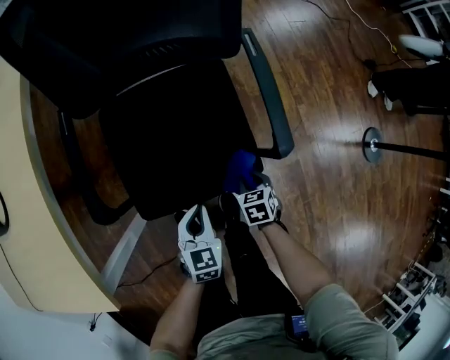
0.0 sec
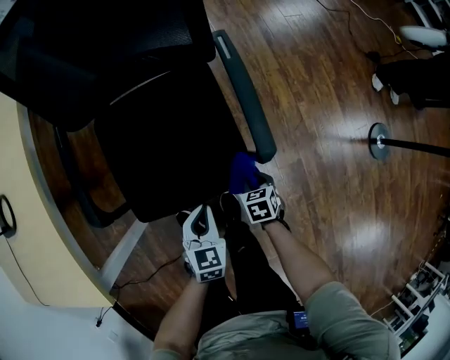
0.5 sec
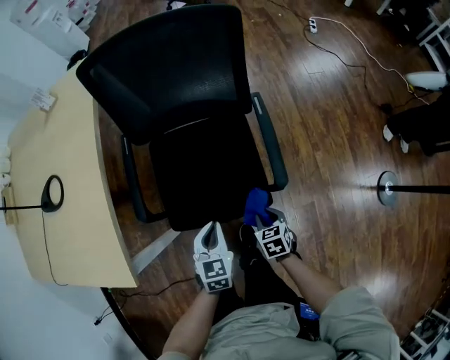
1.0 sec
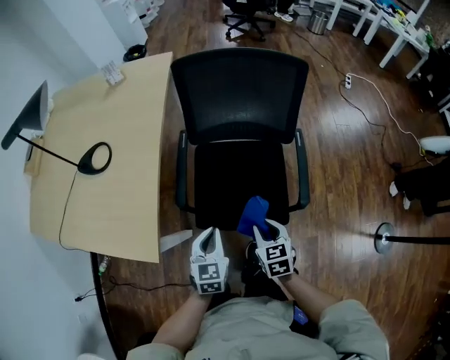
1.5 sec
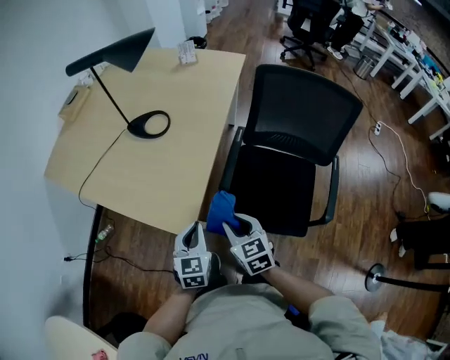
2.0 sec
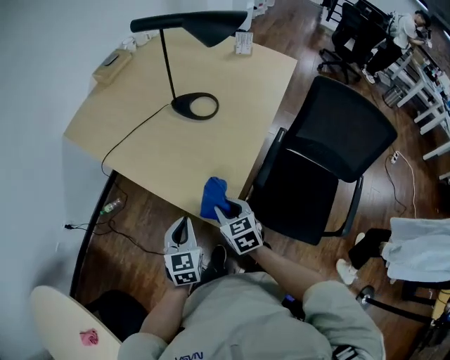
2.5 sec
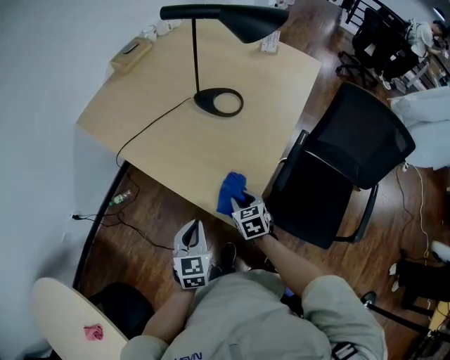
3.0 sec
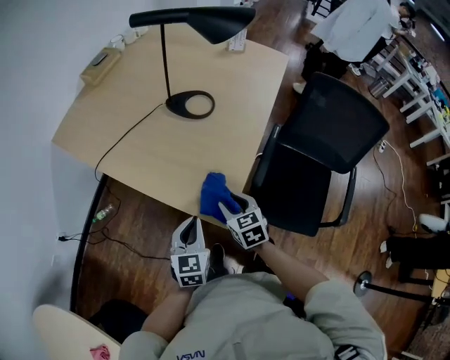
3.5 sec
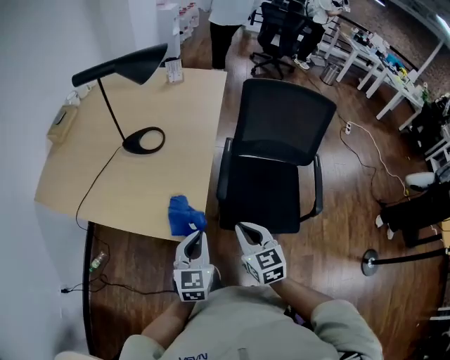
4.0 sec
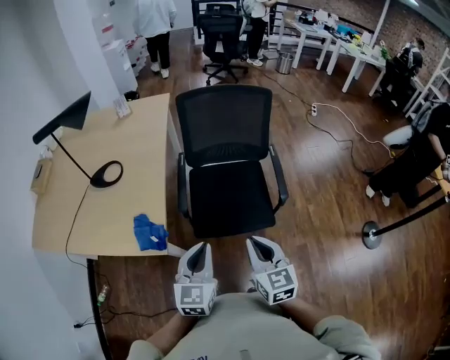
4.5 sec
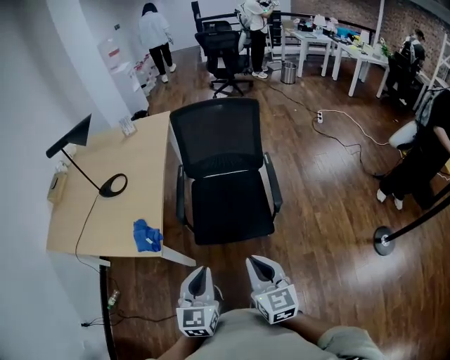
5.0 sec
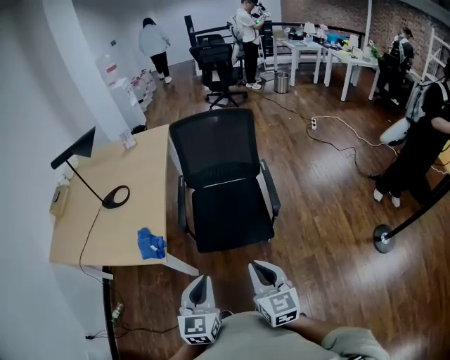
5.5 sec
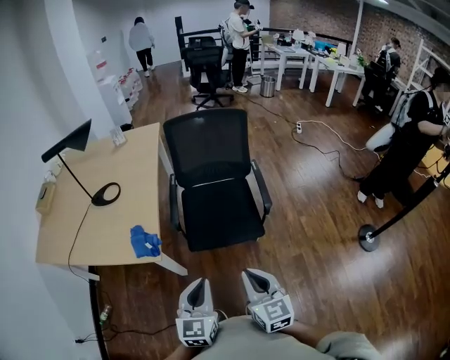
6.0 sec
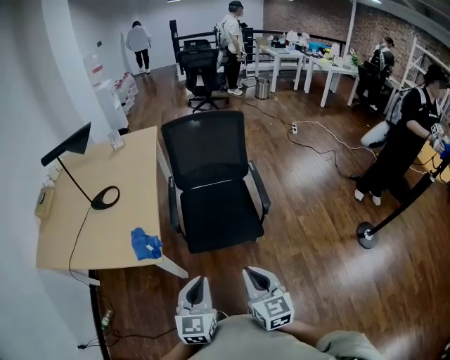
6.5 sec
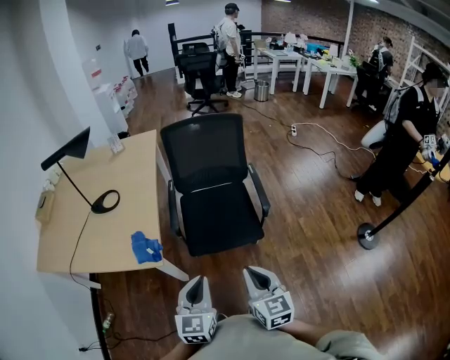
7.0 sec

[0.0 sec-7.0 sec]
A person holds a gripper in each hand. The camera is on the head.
0.0 sec to 2.0 sec: The left gripper changes place by approximately 40 cm, and changes its angle by some 40 degrees. Meanwhile the right gripper moves upward, about 40 cm, and tips its fingers upward by approximately 30 degrees.
2.0 sec to 3.5 sec: The right gripper goes about 20 cm to the left and forward, while the left gripper goes some 15 cm to the left.
3.5 sec to 5.0 sec: The pair of grippers is taken some 40 cm. The right gripper swivels roughly 50 degrees, and closes up; the left gripper swivels roughly 30 degrees.
5.0 sec to 7.0 sec: The right gripper goes approximately 5 cm backward. Meanwhile the left gripper travels to the left by some 5 cm.

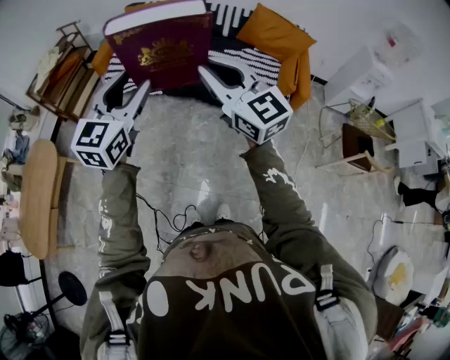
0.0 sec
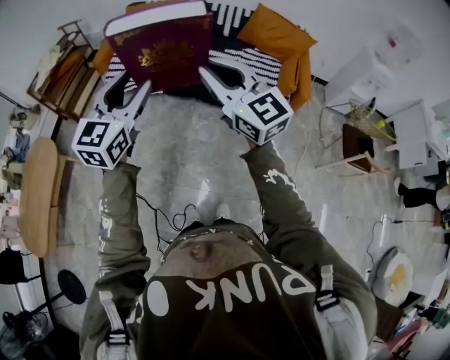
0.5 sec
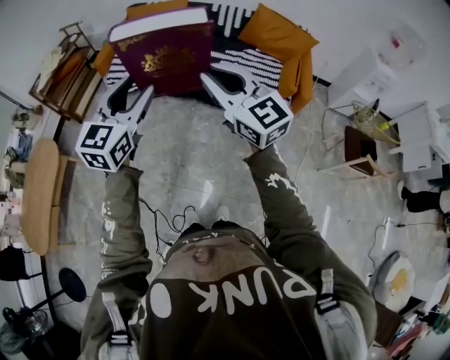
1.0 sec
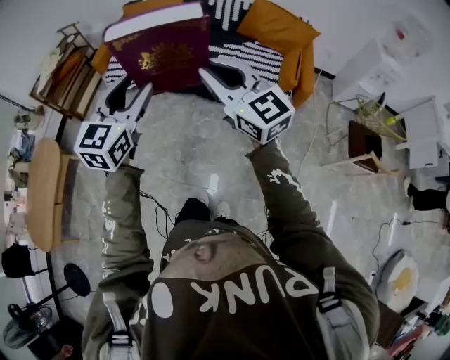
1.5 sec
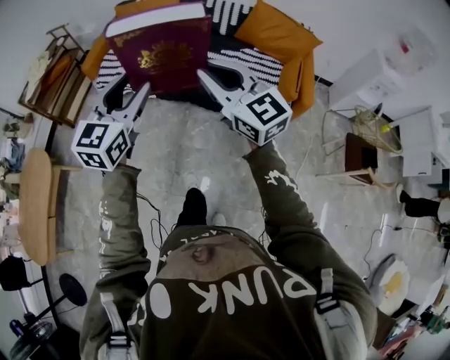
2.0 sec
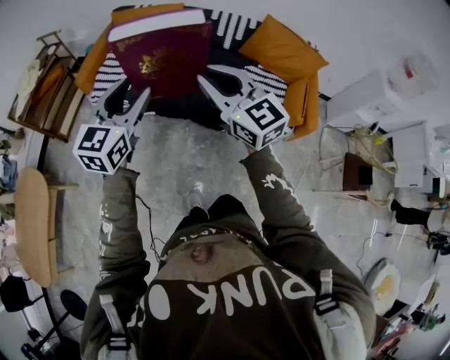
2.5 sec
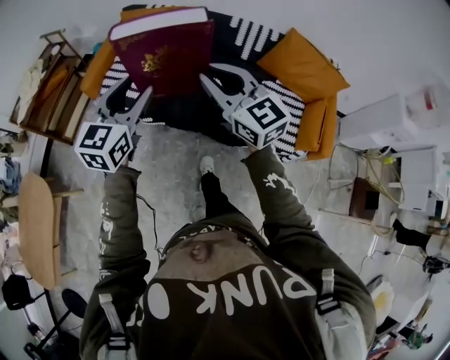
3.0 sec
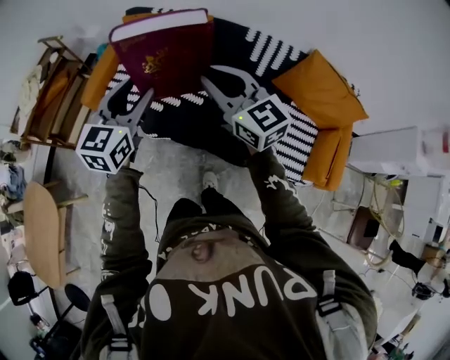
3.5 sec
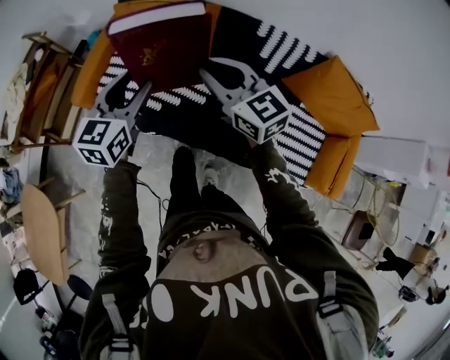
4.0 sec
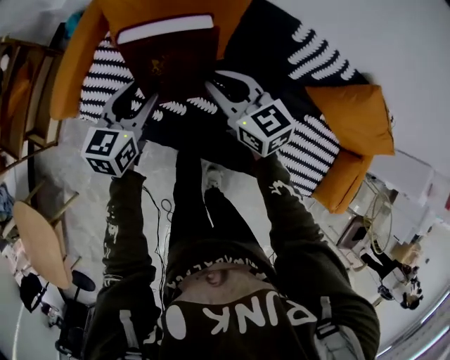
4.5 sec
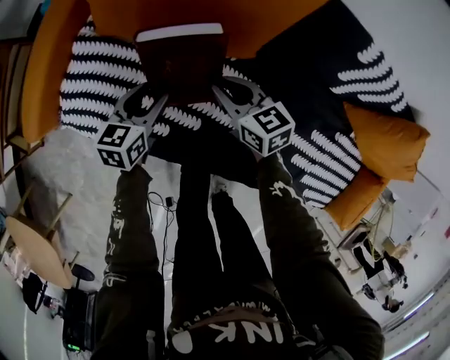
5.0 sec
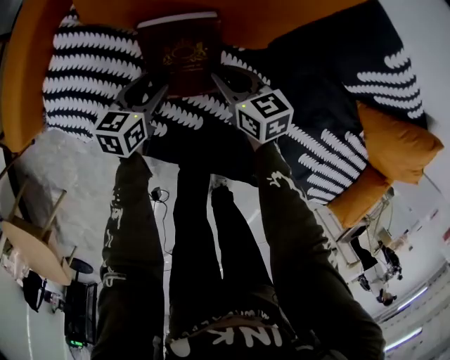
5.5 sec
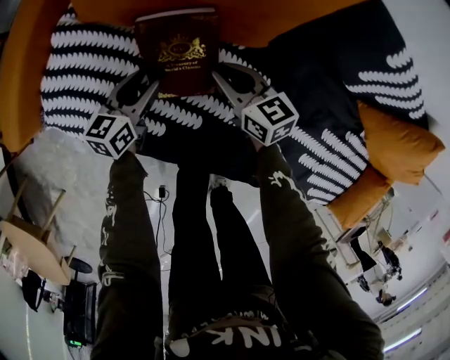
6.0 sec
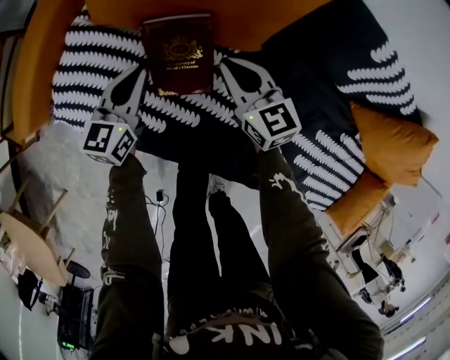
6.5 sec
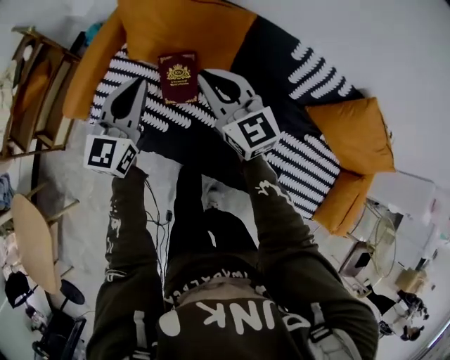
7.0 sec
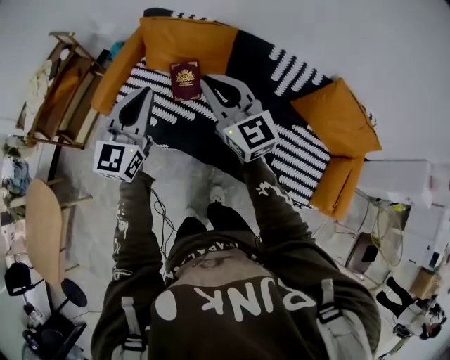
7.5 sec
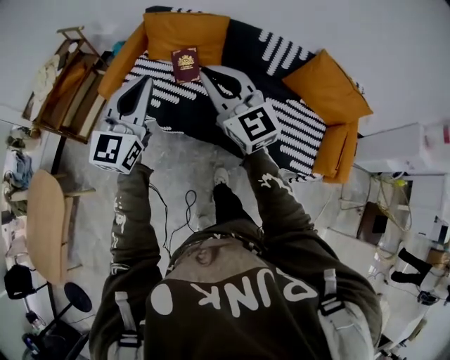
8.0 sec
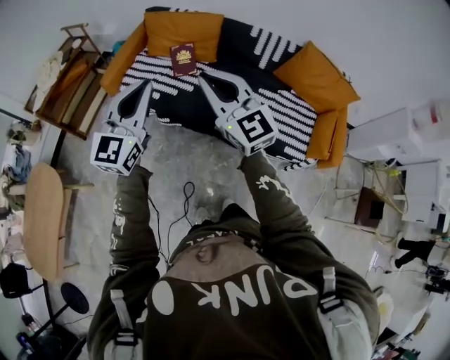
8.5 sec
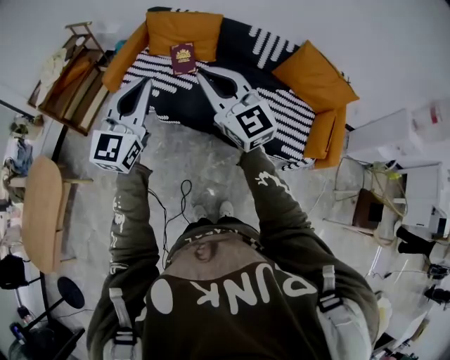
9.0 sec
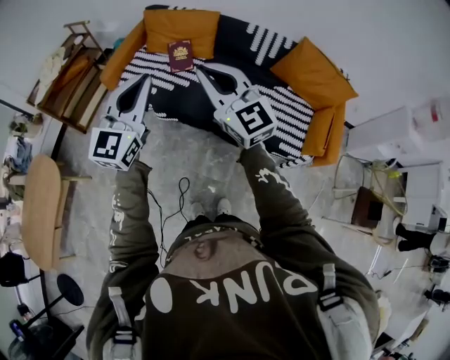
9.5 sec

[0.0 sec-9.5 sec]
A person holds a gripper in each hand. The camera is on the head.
0.0 sec to 2.0 sec: The two grippers go some 15 cm forward and to the right.
2.0 sec to 4.0 sec: Both grippers are carried forward, roughly 60 cm.
4.0 sec to 5.5 sec: Both grippers travel together downward, roughly 60 cm. The left gripper rotates about 40 degrees. Meanwhile the right gripper swivels roughly 40 degrees.
5.5 sec to 7.5 sec: The two grippers go about 70 cm upward and backward. The right gripper angles its fingers upward, by about 40 degrees. Meanwhile the left gripper tips its fingers upward by some 40 degrees, and closes.
7.5 sec to 9.5 sec: The two grippers go approximately 35 cm backward.

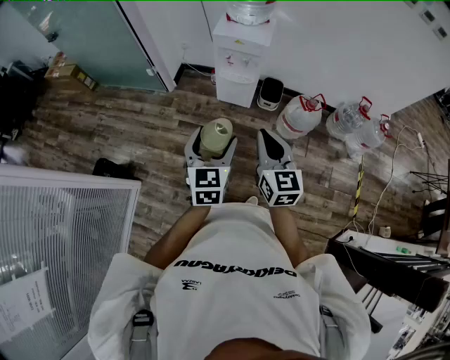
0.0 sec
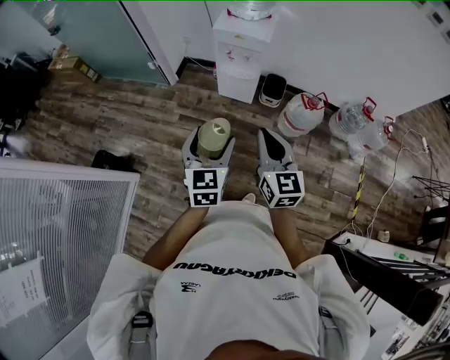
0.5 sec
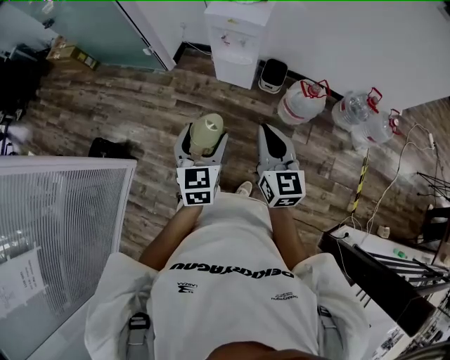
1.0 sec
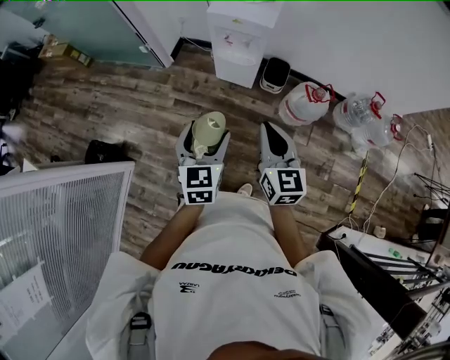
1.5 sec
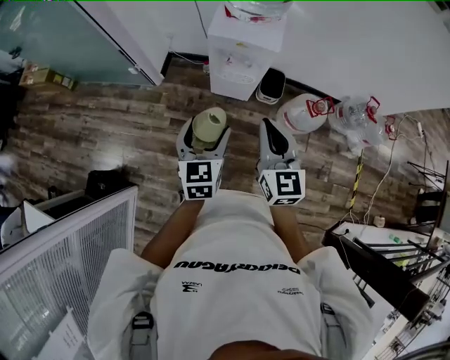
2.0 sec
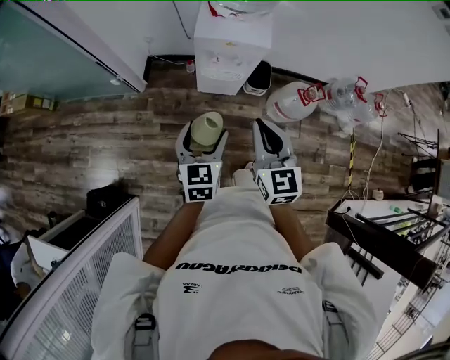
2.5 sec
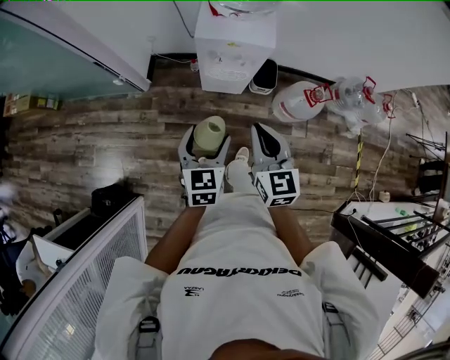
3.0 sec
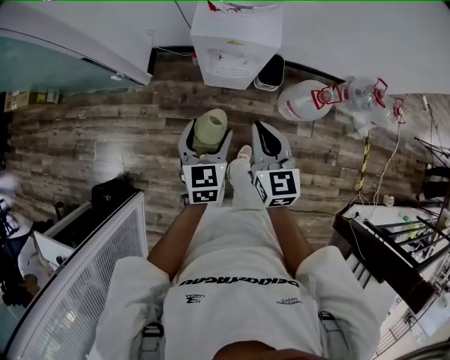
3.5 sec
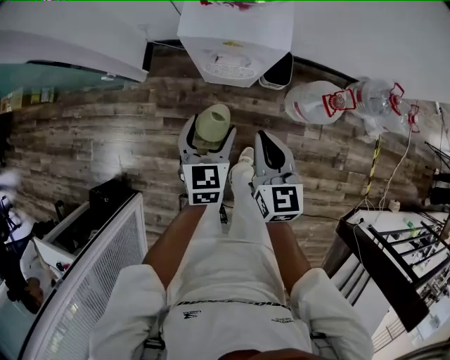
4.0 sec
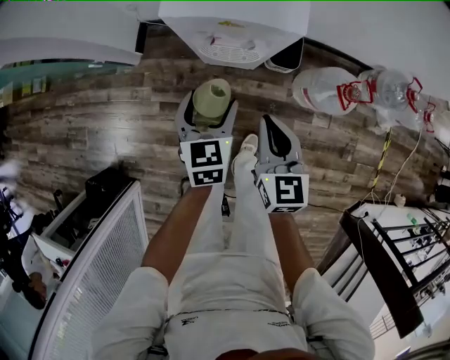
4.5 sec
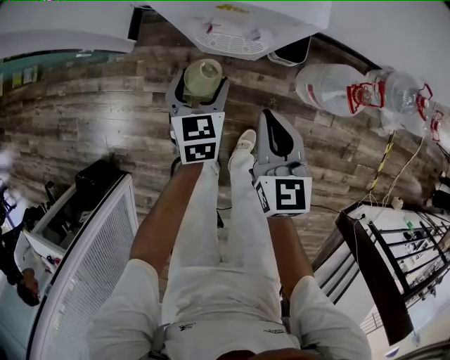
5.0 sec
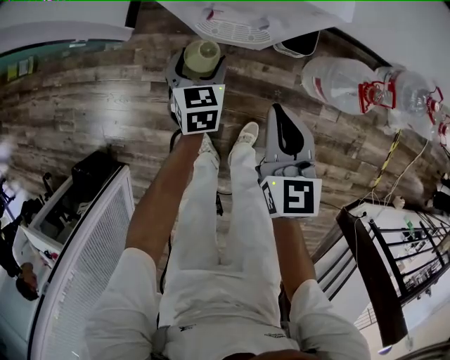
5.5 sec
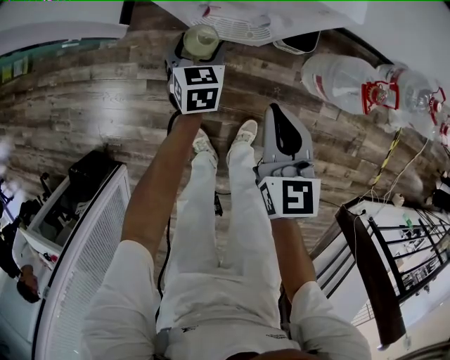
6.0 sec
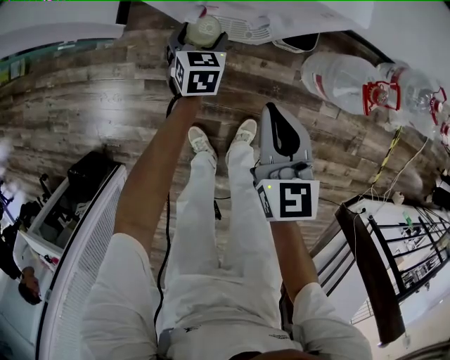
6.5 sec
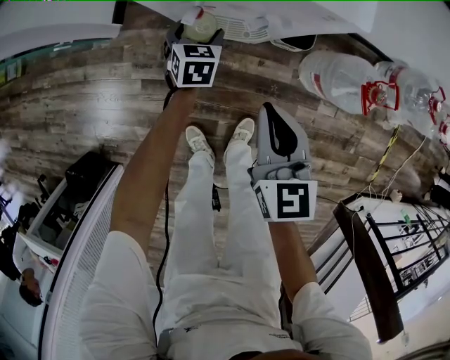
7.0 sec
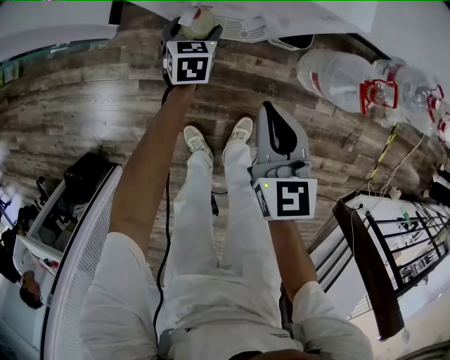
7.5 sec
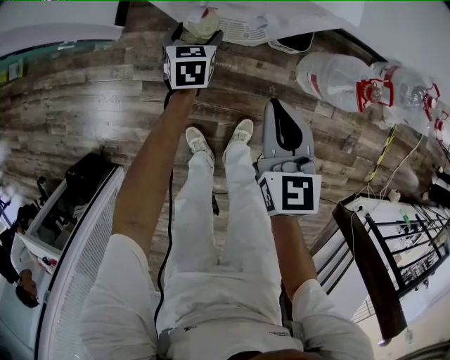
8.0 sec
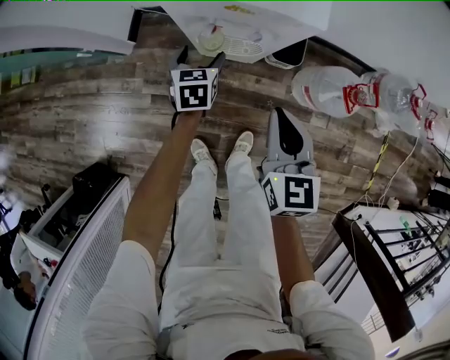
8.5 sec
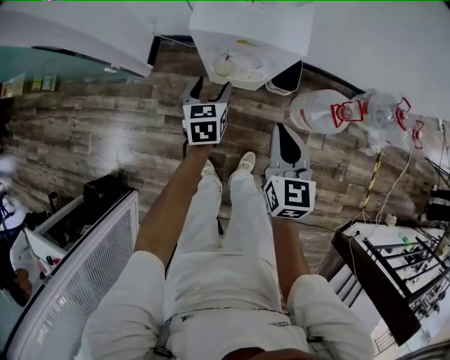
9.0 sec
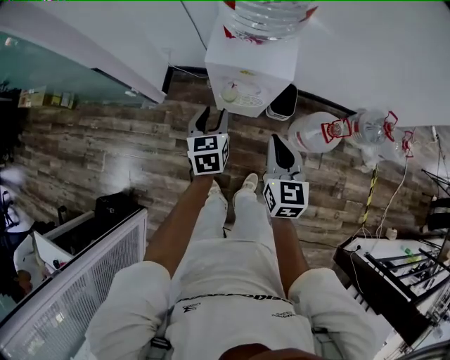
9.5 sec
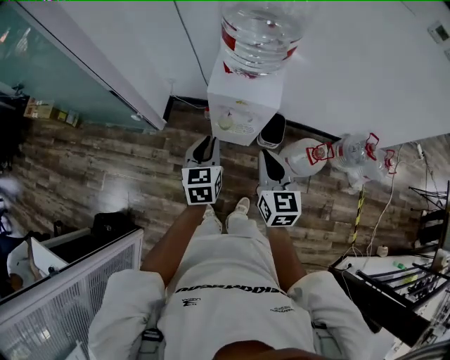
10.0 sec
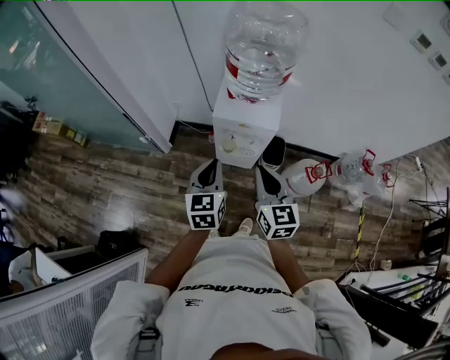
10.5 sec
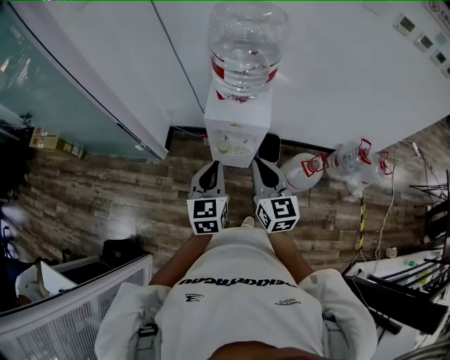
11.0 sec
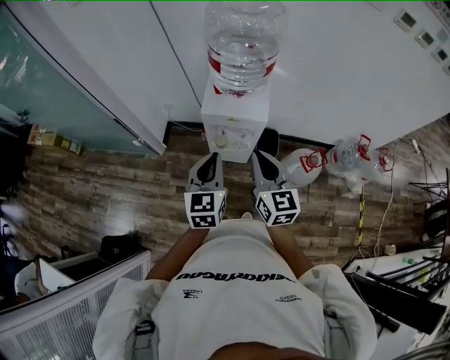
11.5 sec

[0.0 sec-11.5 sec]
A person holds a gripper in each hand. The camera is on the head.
0.0 sec to 2.0 sec: The grippers both shift forward by about 25 cm.
2.0 sec to 4.0 sec: The right gripper goes approximately 25 cm downward and forward, while the left gripper travels forward and downward by approximately 25 cm.
4.0 sec to 6.0 sec: The left gripper heads downward and forward, covering about 35 cm, while the right gripper moves downward, about 20 cm.
6.0 sec to 7.5 sec: The left gripper heads downward and forward, covering some 10 cm.
7.5 sec to 9.5 sec: The left gripper moves upward and backward, about 40 cm, and closes its fingers. Meanwhile the right gripper is displaced upward by approximately 30 cm.
9.5 sec to 11.5 sec: The left gripper goes approximately 25 cm upward and backward, and closes its fingers, while the right gripper is displaced upward by some 15 cm.
